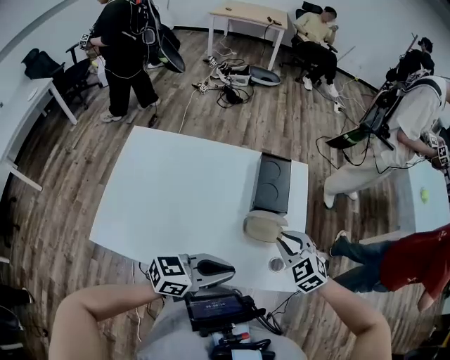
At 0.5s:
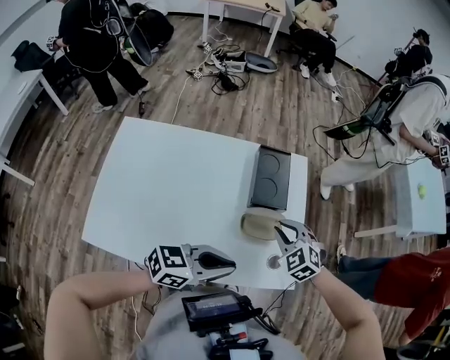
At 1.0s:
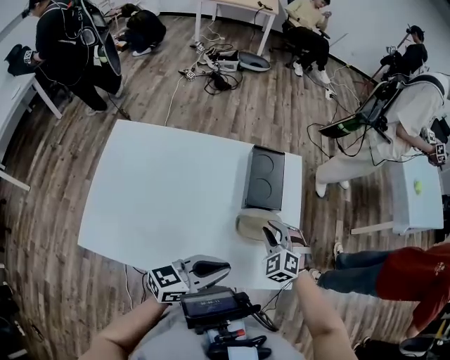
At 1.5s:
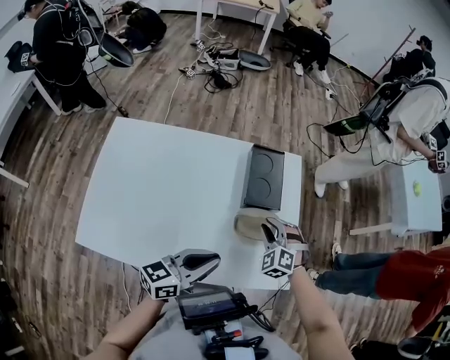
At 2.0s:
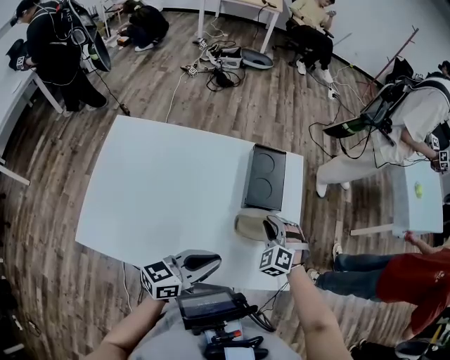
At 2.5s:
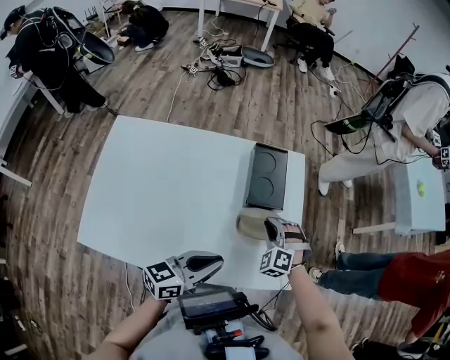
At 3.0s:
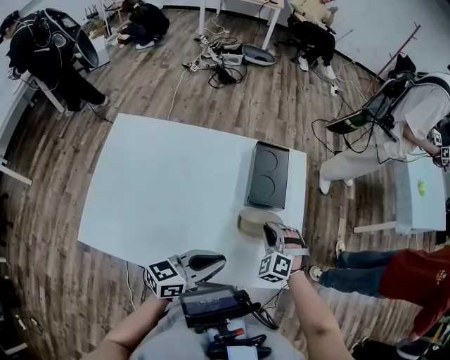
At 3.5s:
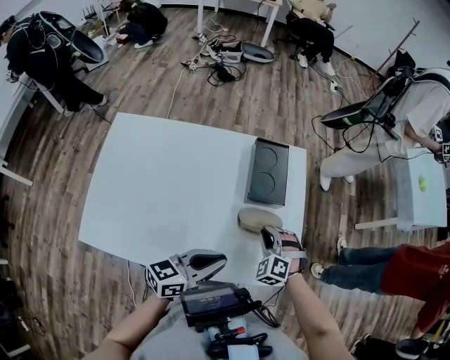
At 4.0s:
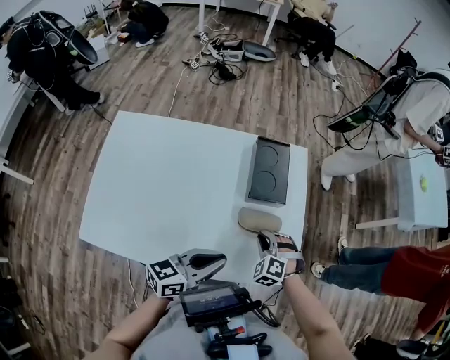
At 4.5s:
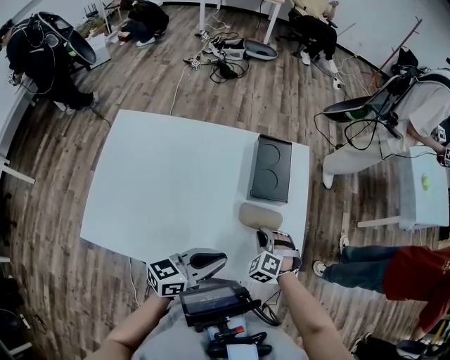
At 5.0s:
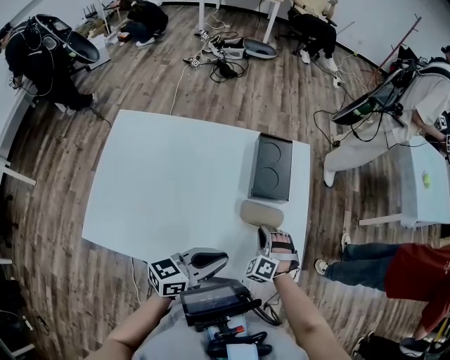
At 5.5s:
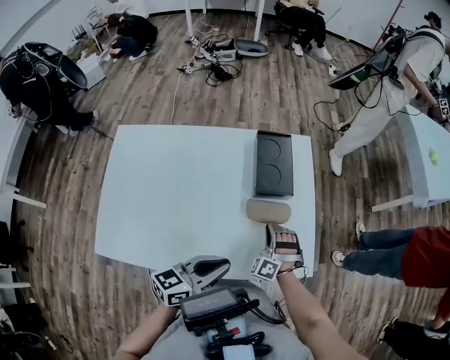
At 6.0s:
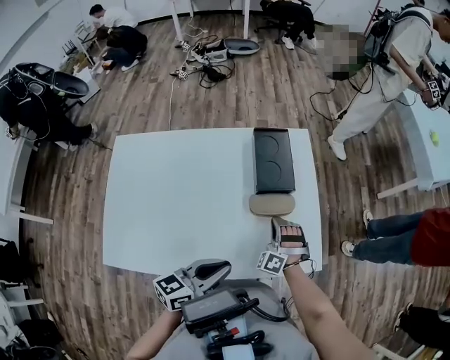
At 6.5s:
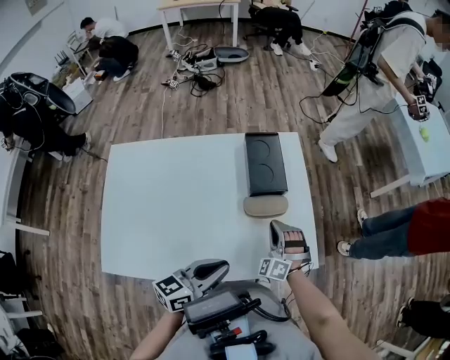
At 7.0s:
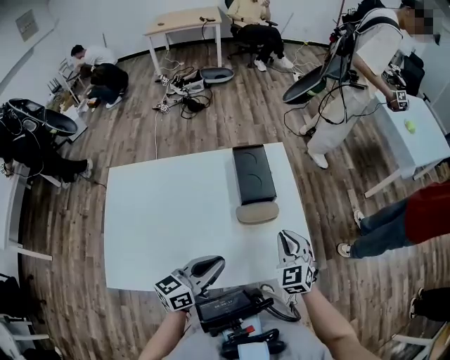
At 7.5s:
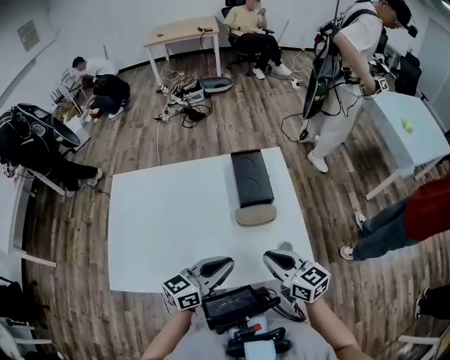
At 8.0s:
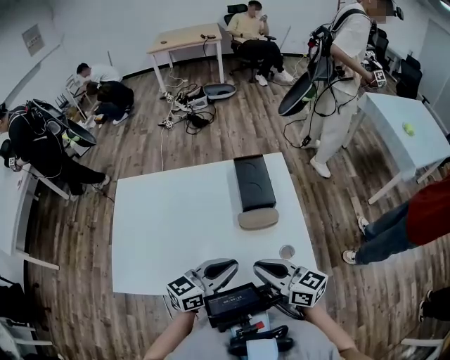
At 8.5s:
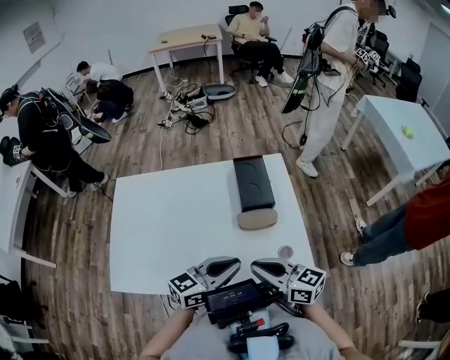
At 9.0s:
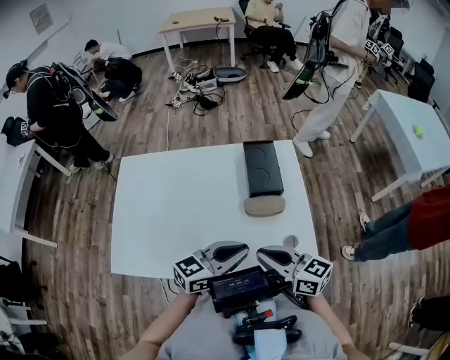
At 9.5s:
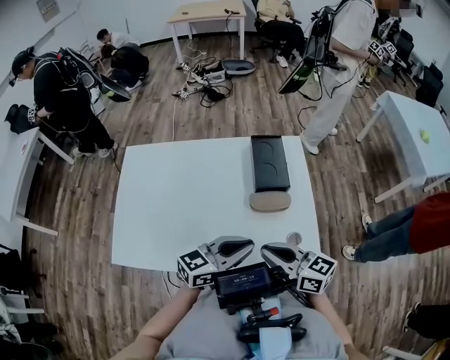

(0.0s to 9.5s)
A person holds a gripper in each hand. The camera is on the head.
0.0s - 2.0s: The right gripper shifts roughly 10 cm downward and forward, and swivels approximately 30 degrees. The left gripper ends up roughly 5 cm from where it was.
2.0s - 4.0s: The right gripper heads backward and downward, covering some 10 cm.
4.0s - 5.5s: The right gripper swivels about 30 degrees.
5.5s - 7.5s: The right gripper shifts roughly 20 cm upward and backward, and rotates around the line of its fingers by about 80 degrees, clockwise from behind; the left gripper shifts by some 5 cm.
7.5s - 9.5s: The right gripper ends up roughly 5 cm from where it was.

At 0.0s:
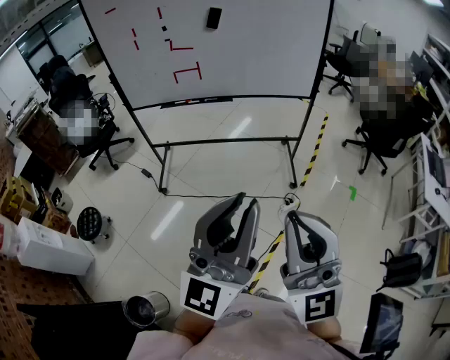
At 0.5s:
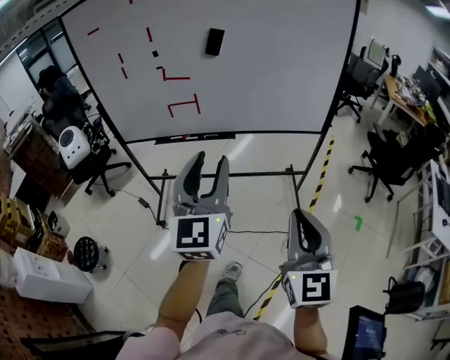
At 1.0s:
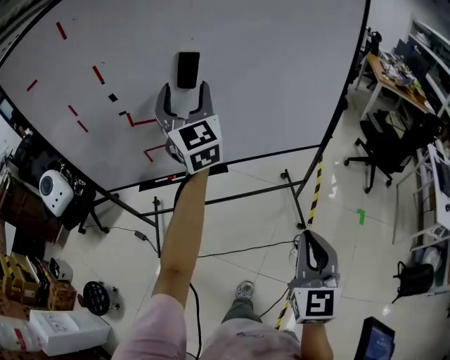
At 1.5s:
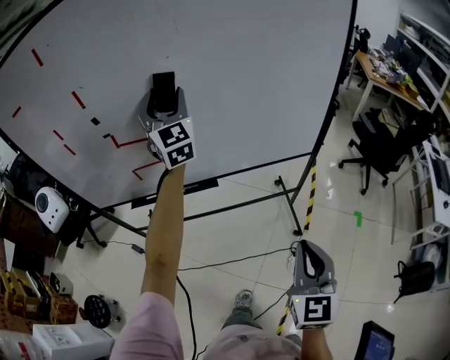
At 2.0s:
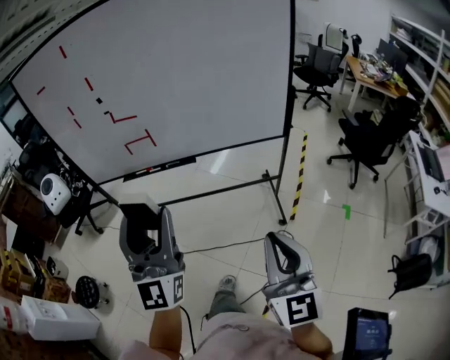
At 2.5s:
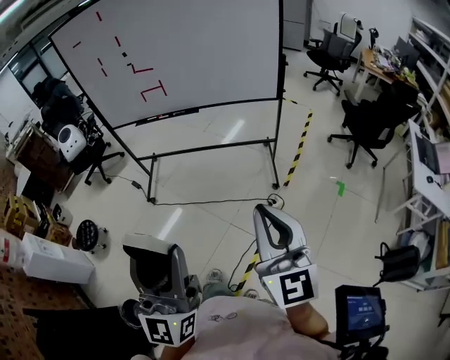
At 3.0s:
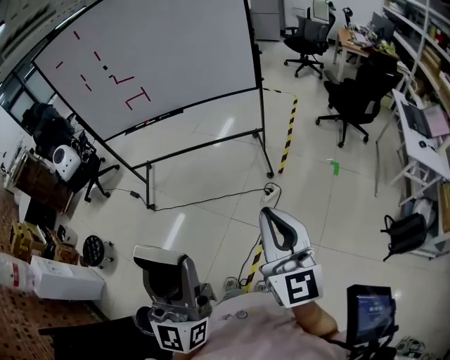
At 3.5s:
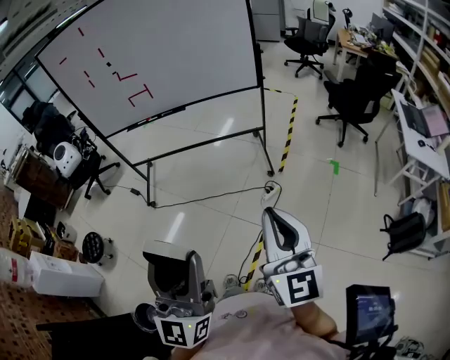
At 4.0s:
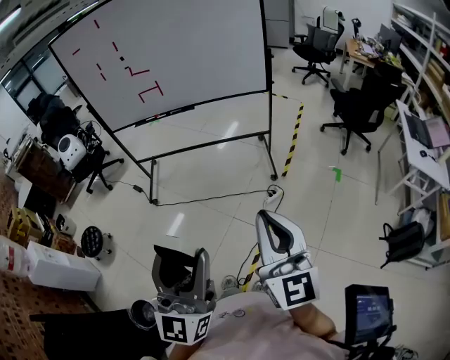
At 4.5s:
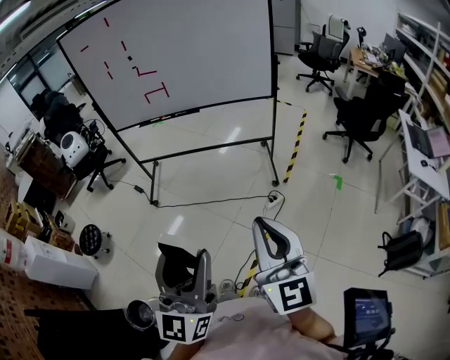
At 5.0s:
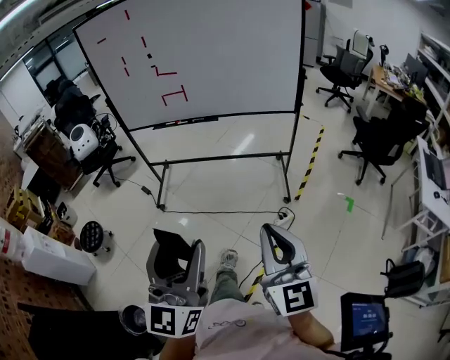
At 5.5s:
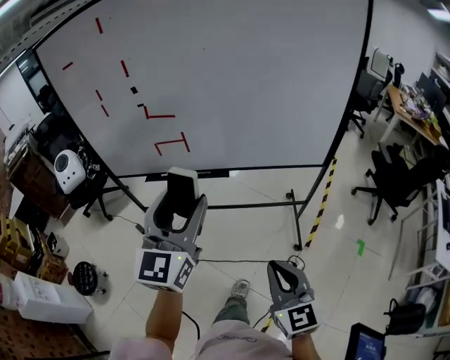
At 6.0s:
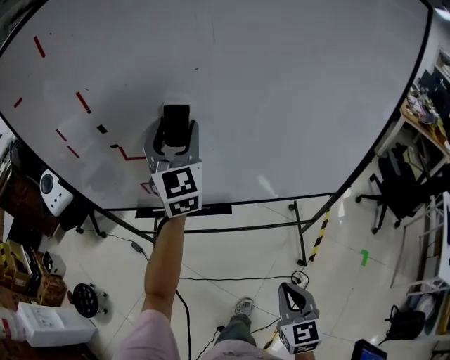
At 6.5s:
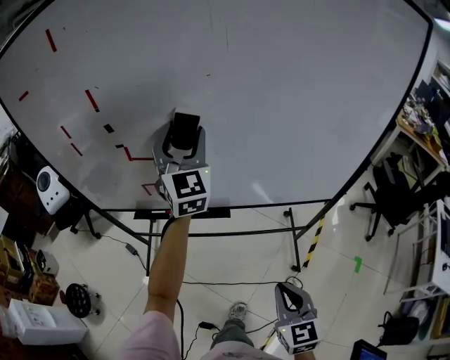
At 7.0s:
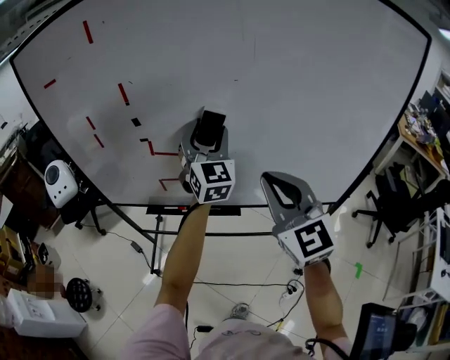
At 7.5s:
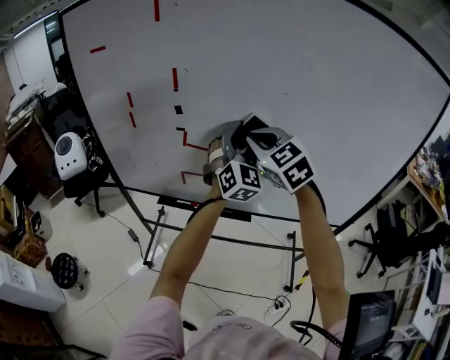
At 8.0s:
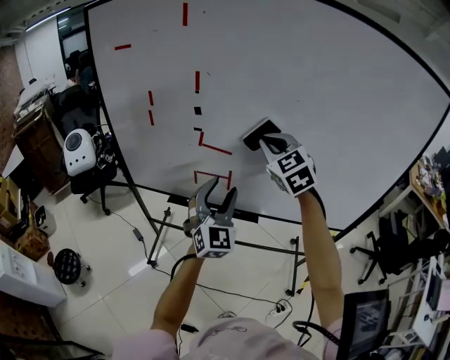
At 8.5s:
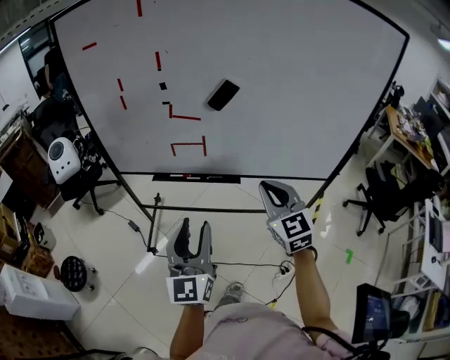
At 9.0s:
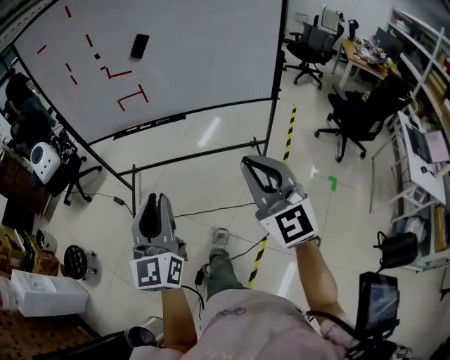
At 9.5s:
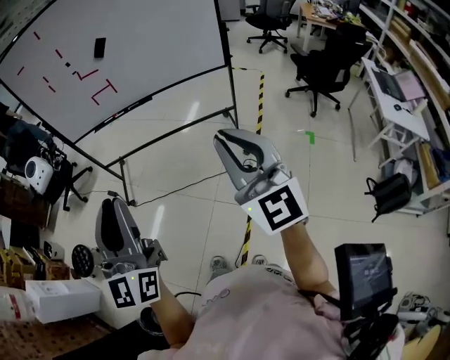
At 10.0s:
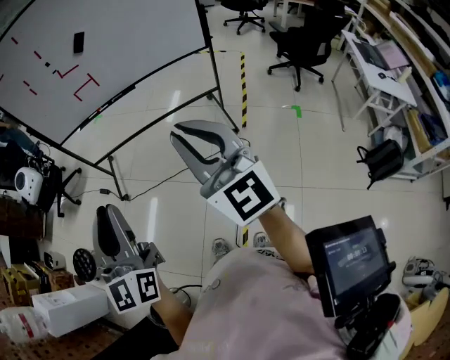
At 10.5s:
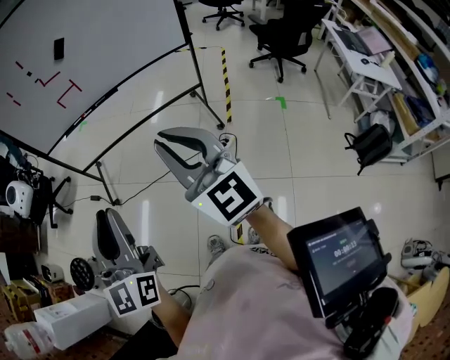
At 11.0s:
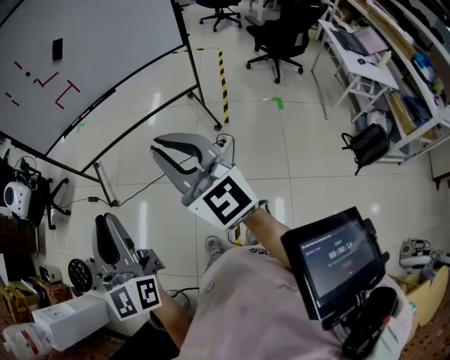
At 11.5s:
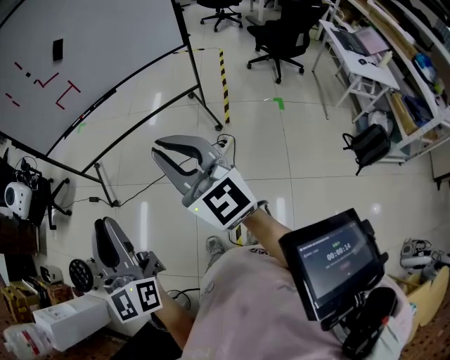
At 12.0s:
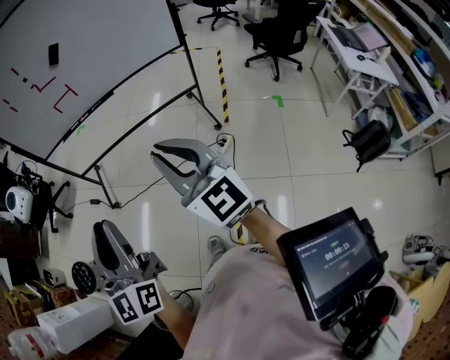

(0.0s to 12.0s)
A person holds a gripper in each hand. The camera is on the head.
0.0s - 2.0s: Both grippers travel together forward, approximately 30 cm. The left gripper changes its angle by roughly 20 degrees, and opens up. The right gripper swivels approximately 30 degrees.
2.0s - 4.0s: The two grippers go approximately 40 cm backward.
4.0s - 6.0s: The pair of grippers is taken forward, roughly 80 cm. The right gripper tilts its fingers roughly 30 degrees downward; the left gripper turns by roughly 30 degrees.
6.0s - 8.0s: The left gripper goes roughly 20 cm backward, to the left and downward. Meanwhile the right gripper goes roughly 50 cm forward, upward and to the left, and twists roughly 40 degrees counterclockwise, seen from behind.
8.0s - 10.0s: The two grippers travel together, backward, roughly 70 cm. The left gripper changes its angle by roughly 30 degrees, and closes its fingers. Meanwhile the right gripper changes its angle by approximately 40 degrees.
10.0s - 12.0s: The grippers stay close to where they were, moving slightly.

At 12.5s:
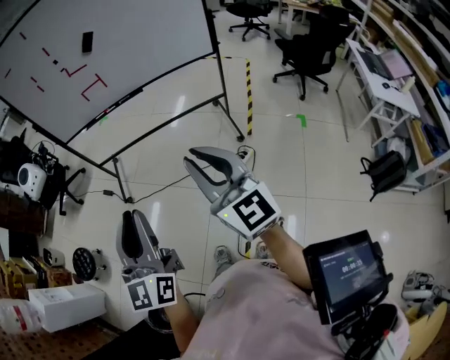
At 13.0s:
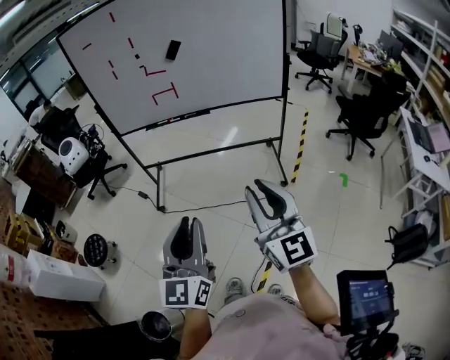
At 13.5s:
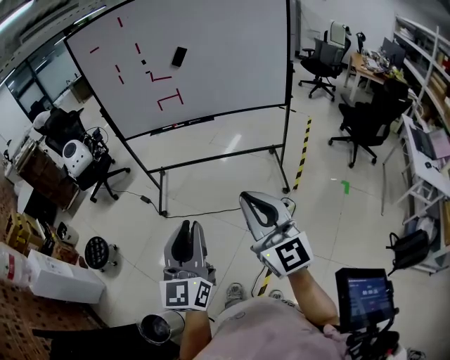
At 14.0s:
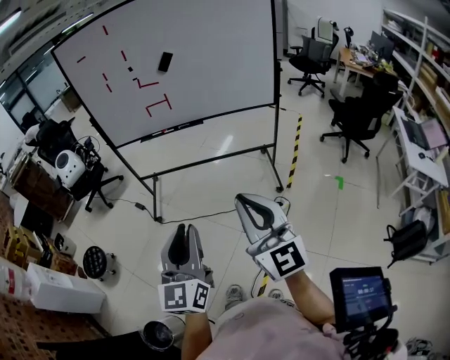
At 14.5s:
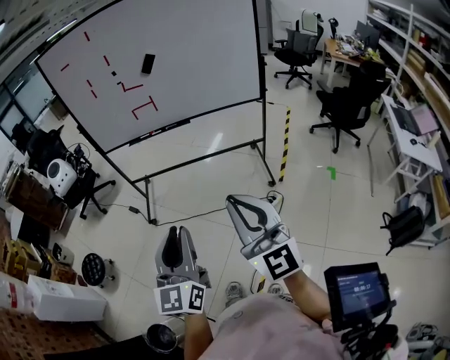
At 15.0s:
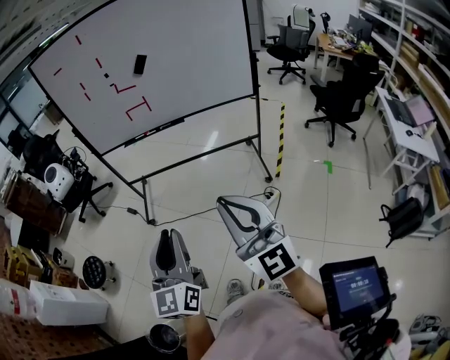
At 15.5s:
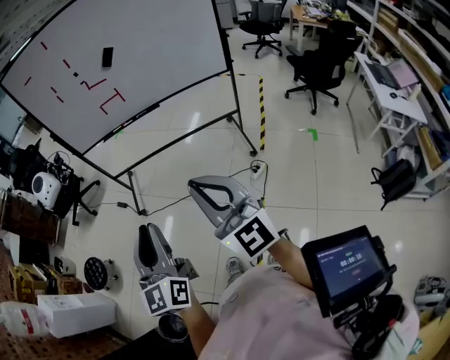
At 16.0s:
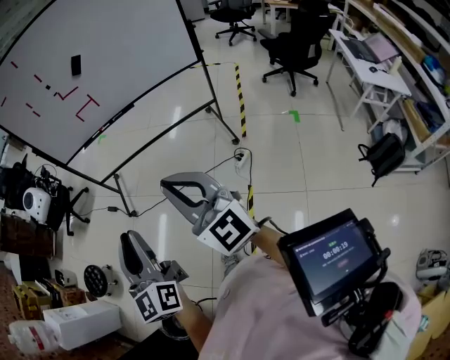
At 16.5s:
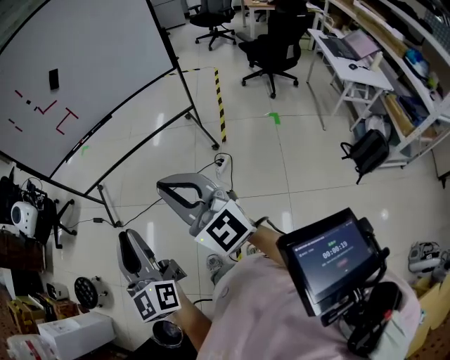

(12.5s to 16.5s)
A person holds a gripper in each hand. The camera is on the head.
12.5s - 14.5s: The right gripper moves about 5 cm.
14.5s - 16.5s: The left gripper is displaced backward and to the right by roughly 10 cm. Meanwhile the right gripper shifts roughly 5 cm to the right.

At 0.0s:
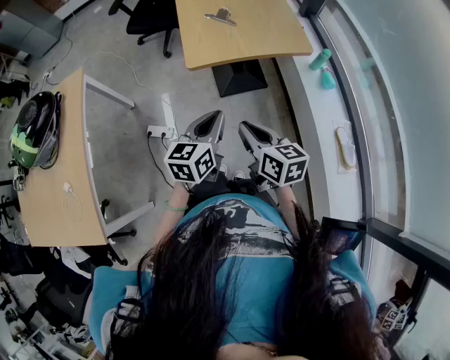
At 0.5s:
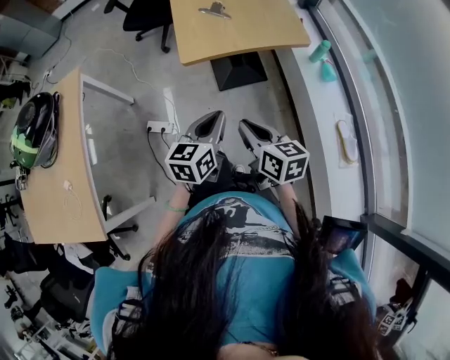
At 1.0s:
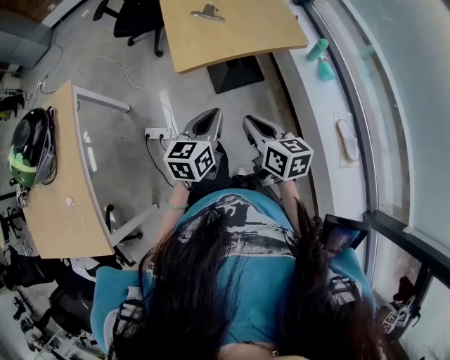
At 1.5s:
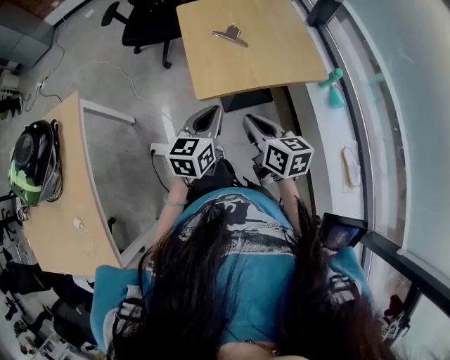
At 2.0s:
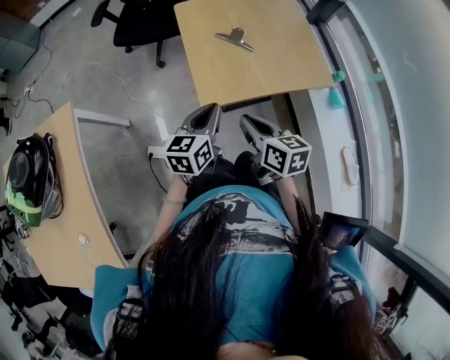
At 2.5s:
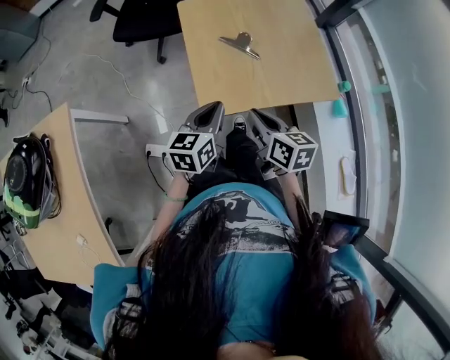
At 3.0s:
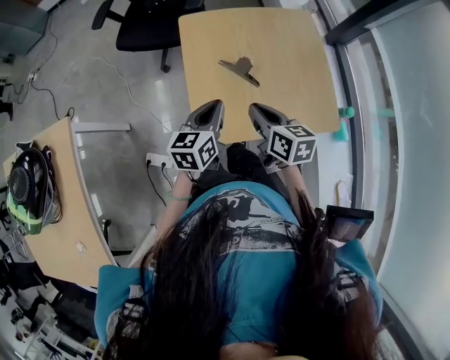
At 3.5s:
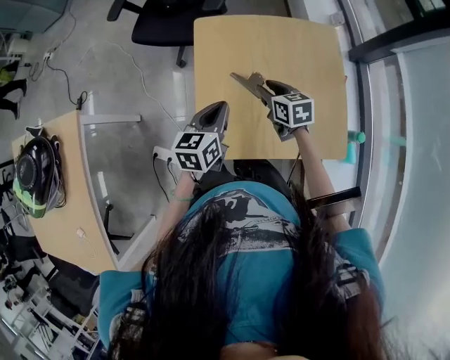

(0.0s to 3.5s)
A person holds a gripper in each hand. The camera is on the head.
0.0s - 2.0s: The grippers both shift forward by some 30 cm.
2.0s - 3.5s: The grippers both shift forward by roughly 30 cm. The right gripper changes its angle by some 20 degrees, and opens its fingers.
